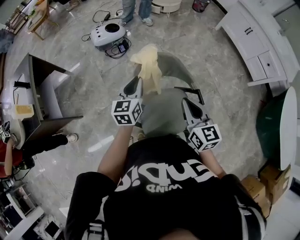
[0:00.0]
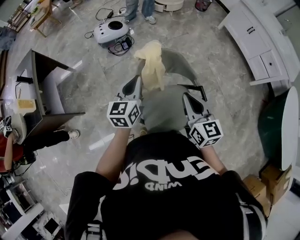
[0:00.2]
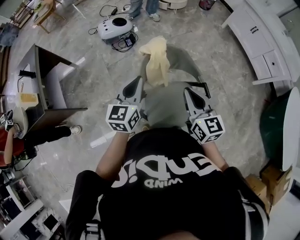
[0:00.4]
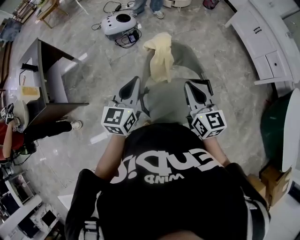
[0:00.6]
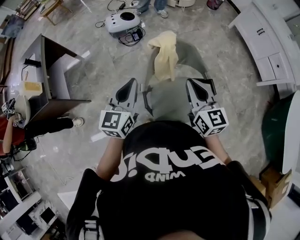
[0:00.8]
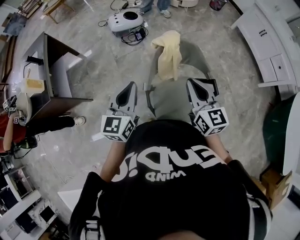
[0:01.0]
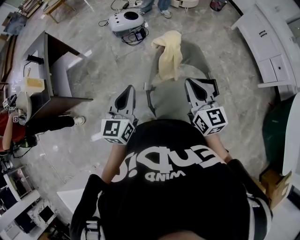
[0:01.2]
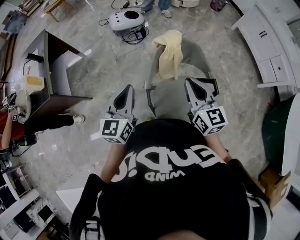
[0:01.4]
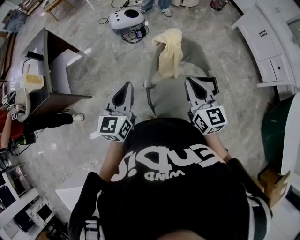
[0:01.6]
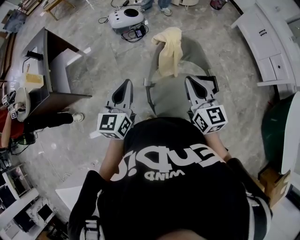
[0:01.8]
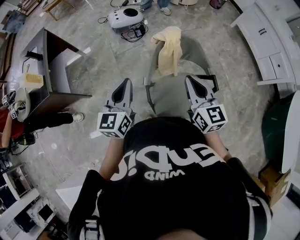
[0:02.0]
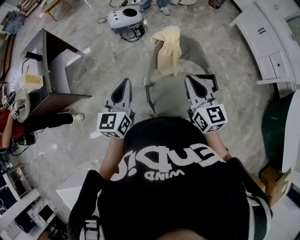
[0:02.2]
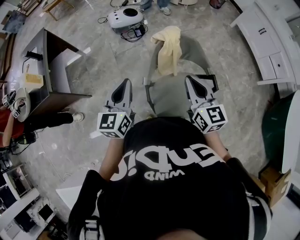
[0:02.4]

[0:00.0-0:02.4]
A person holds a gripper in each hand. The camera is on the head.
0:00.0 to 0:01.2: The left gripper goes approximately 20 cm backward, to the left and upward. The right gripper goes roughly 10 cm to the left.
0:01.2 to 0:02.4: There are only small adjustments of the grippers.

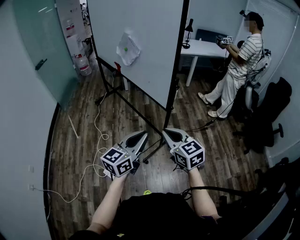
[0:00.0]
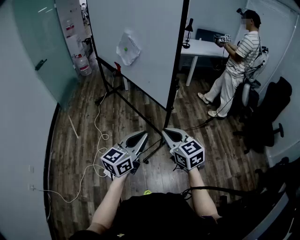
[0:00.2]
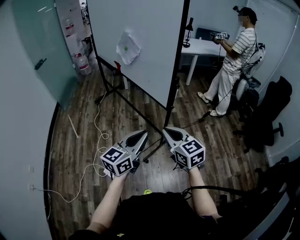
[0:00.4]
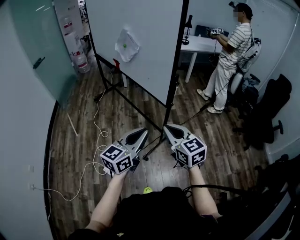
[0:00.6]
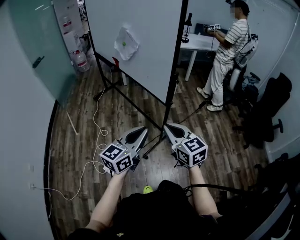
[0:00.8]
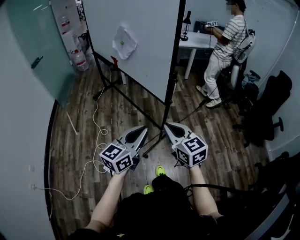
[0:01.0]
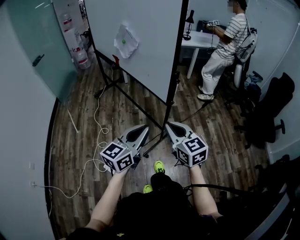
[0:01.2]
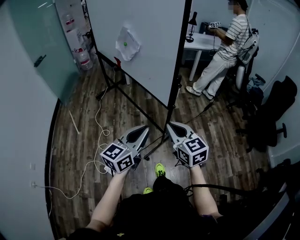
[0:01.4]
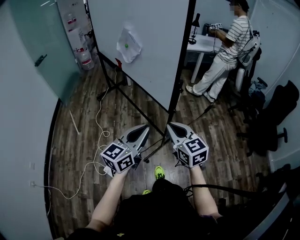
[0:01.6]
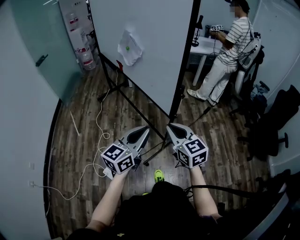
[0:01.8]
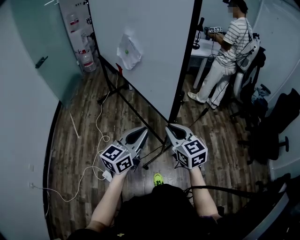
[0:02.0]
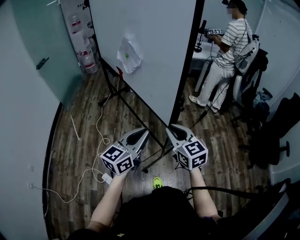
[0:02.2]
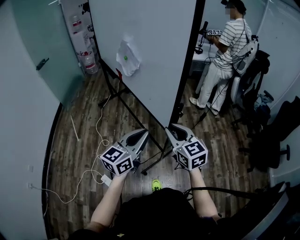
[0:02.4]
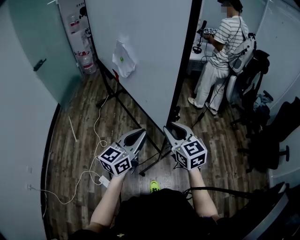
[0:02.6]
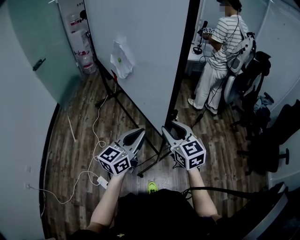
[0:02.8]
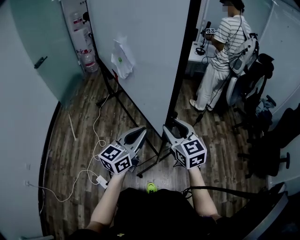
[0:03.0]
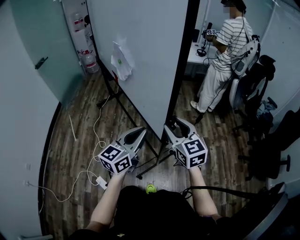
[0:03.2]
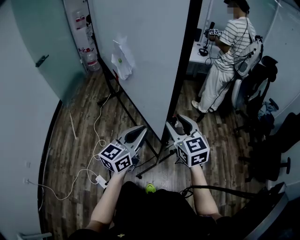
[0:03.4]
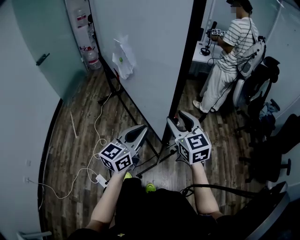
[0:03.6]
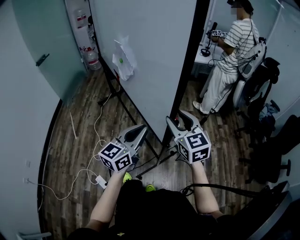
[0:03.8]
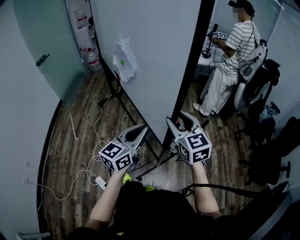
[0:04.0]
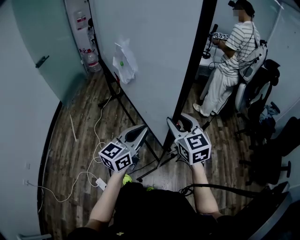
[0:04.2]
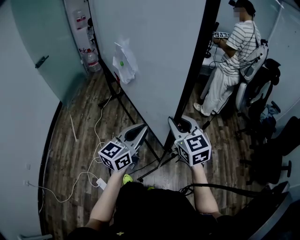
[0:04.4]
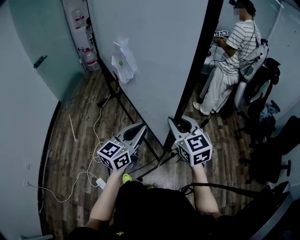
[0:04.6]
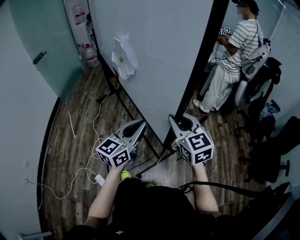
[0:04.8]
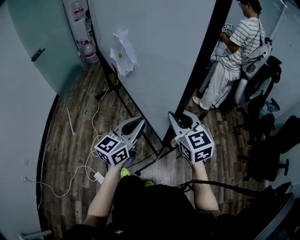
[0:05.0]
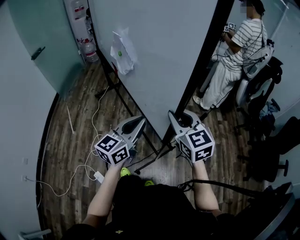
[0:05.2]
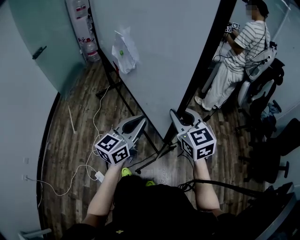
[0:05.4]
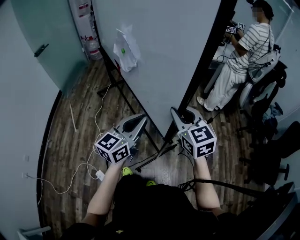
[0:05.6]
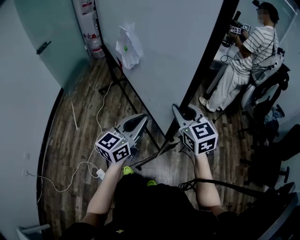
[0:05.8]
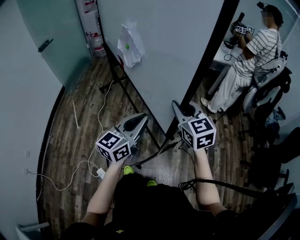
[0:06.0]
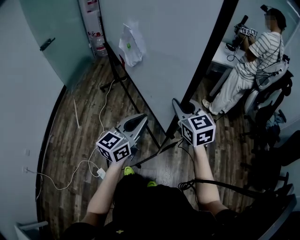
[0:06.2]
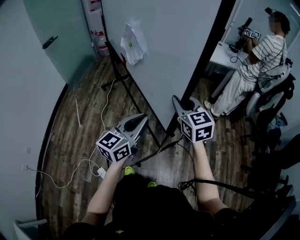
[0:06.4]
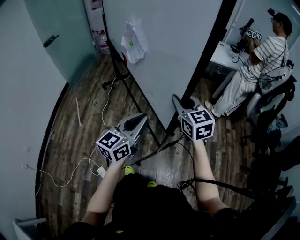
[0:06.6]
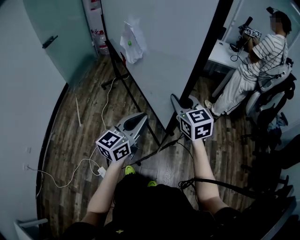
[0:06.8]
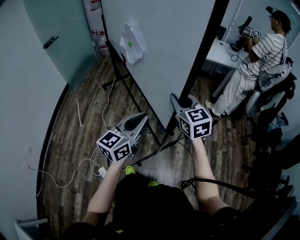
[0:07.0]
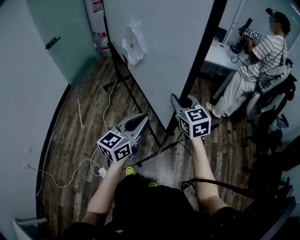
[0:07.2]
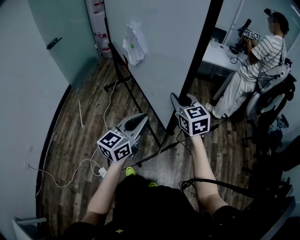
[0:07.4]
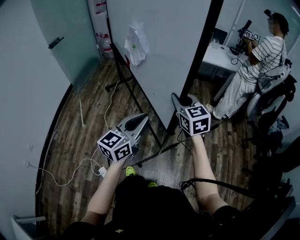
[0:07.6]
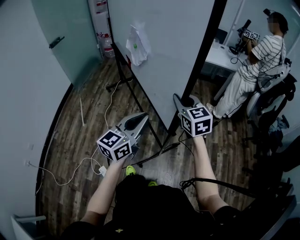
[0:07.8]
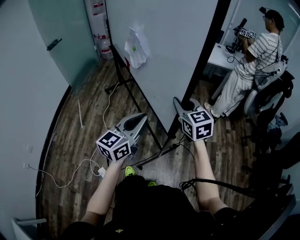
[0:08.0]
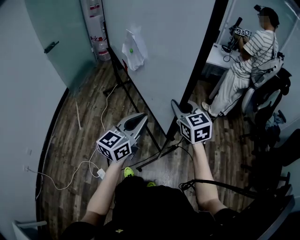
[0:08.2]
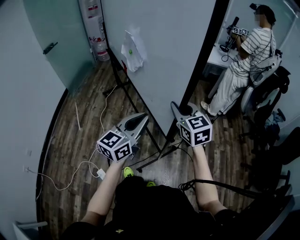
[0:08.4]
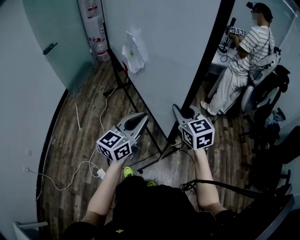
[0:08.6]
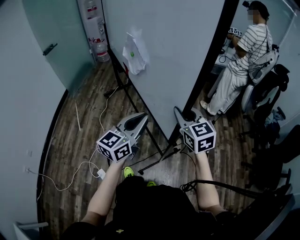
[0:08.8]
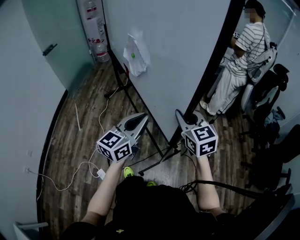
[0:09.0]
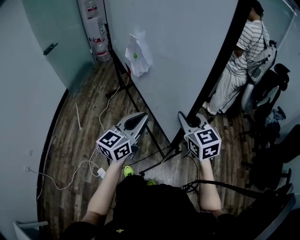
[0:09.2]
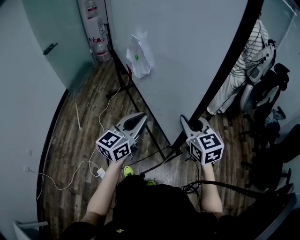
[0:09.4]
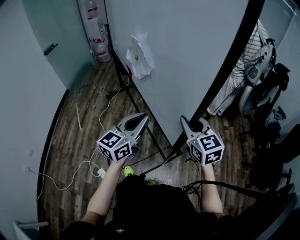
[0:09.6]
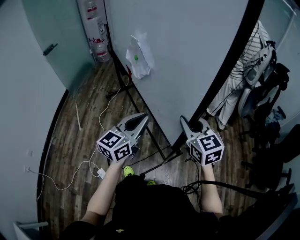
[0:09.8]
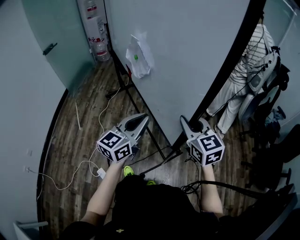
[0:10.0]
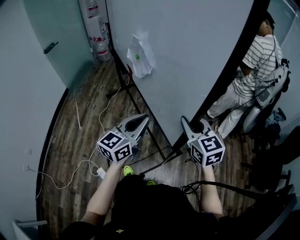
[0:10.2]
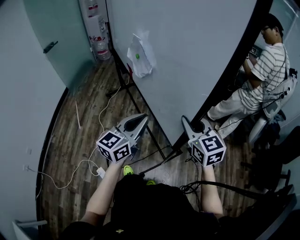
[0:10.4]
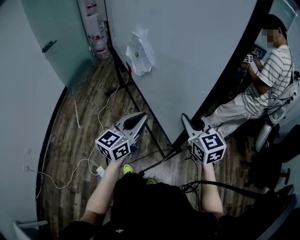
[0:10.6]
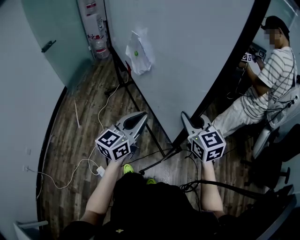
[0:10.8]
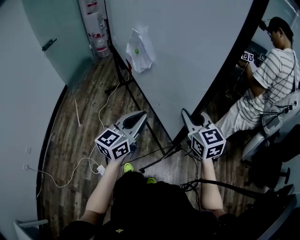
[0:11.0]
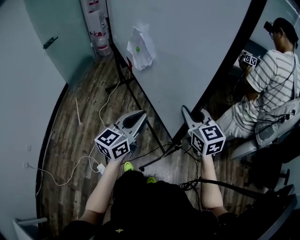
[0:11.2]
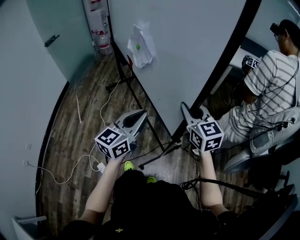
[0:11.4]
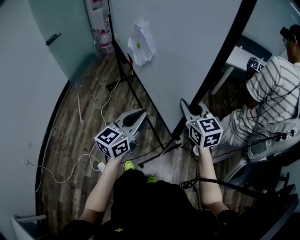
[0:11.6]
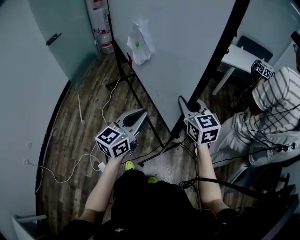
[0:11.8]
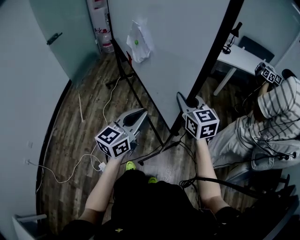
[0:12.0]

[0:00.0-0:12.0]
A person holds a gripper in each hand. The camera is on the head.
0:00.0 to 0:01.6: Both grippers travel together forward, some 5 cm.
0:01.6 to 0:03.0: Both grippers move forward, roughly 15 cm. The right gripper opens up.
0:03.0 to 0:04.4: The two grippers go some 5 cm forward.
0:04.4 to 0:06.0: The right gripper moves forward and to the left, about 10 cm, while the left gripper heads to the left, covering roughly 5 cm.
0:06.0 to 0:07.6: There are only small adjustments of the grippers.
0:07.6 to 0:09.0: The left gripper shifts by roughly 5 cm. The right gripper heads backward and to the right, covering some 15 cm.
0:09.0 to 0:10.4: The grippers move only a little.
0:10.4 to 0:12.0: The left gripper goes roughly 5 cm to the left. Meanwhile the right gripper moves forward and to the left, about 15 cm.

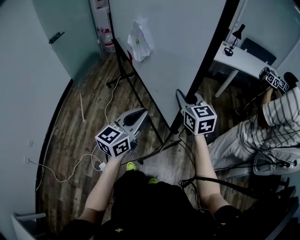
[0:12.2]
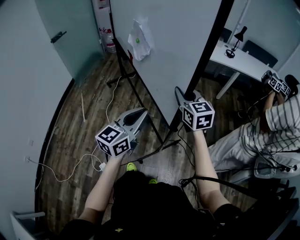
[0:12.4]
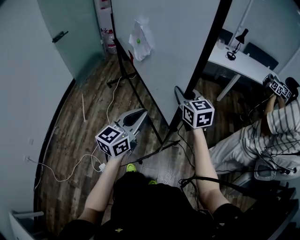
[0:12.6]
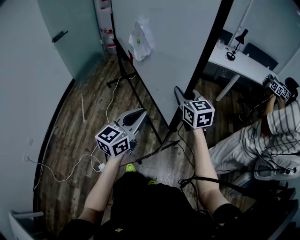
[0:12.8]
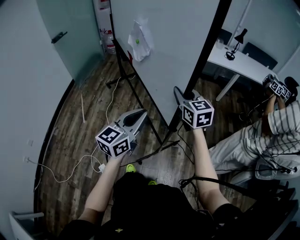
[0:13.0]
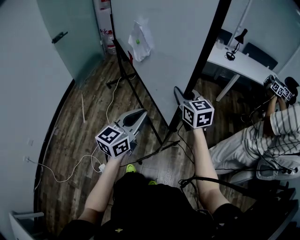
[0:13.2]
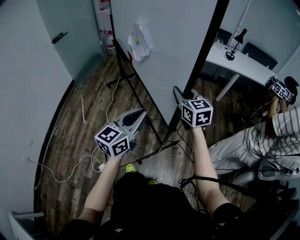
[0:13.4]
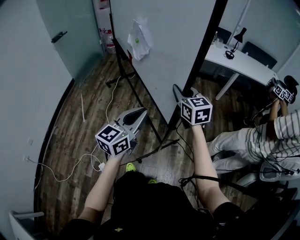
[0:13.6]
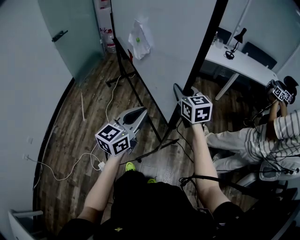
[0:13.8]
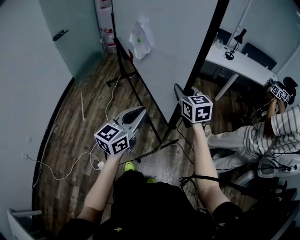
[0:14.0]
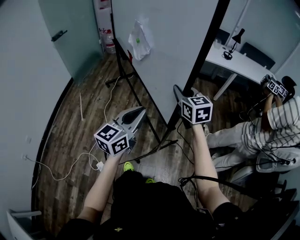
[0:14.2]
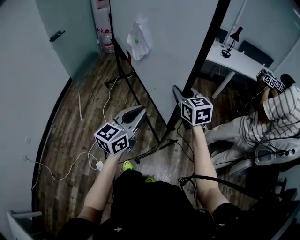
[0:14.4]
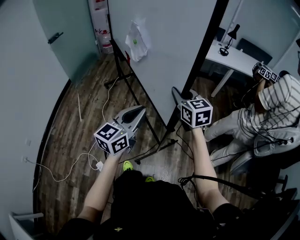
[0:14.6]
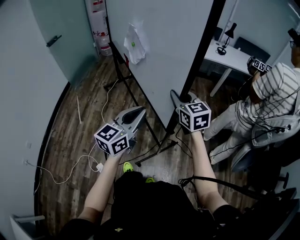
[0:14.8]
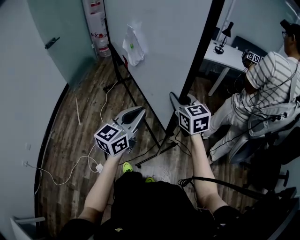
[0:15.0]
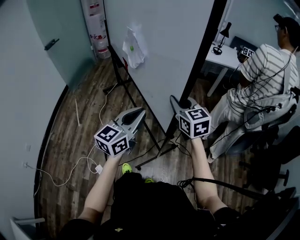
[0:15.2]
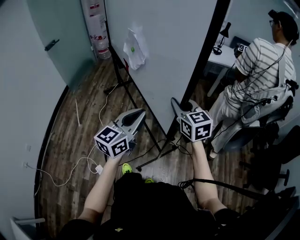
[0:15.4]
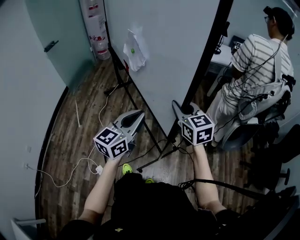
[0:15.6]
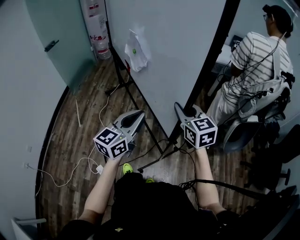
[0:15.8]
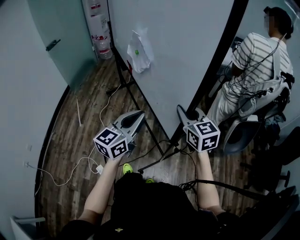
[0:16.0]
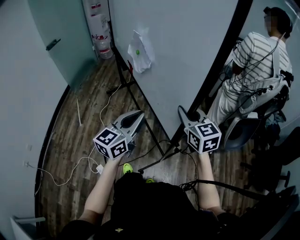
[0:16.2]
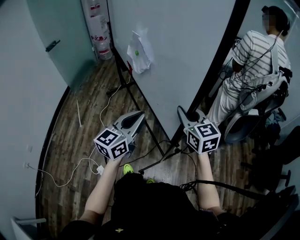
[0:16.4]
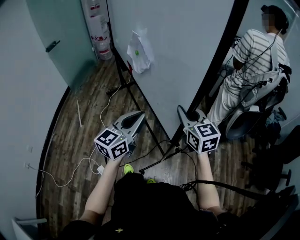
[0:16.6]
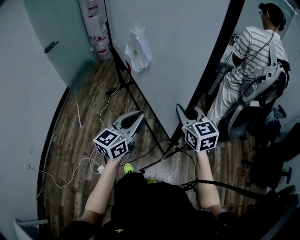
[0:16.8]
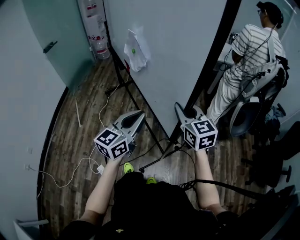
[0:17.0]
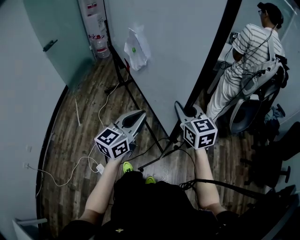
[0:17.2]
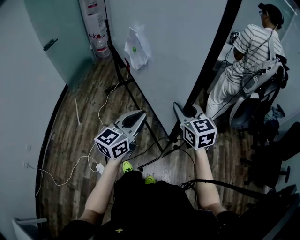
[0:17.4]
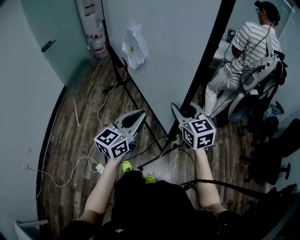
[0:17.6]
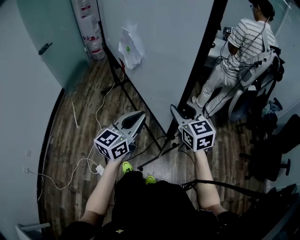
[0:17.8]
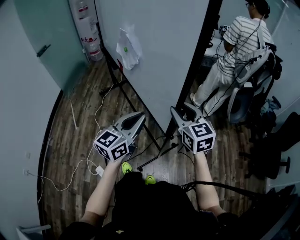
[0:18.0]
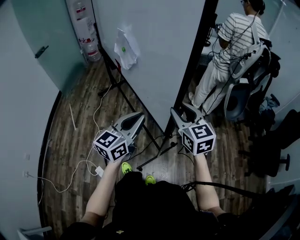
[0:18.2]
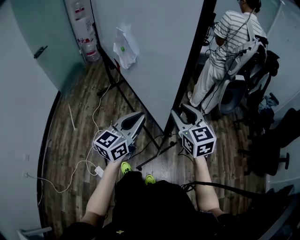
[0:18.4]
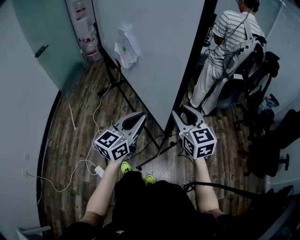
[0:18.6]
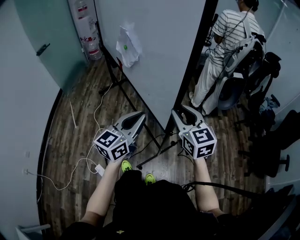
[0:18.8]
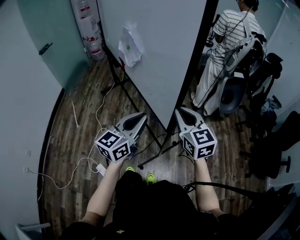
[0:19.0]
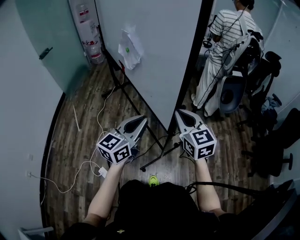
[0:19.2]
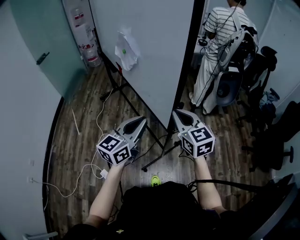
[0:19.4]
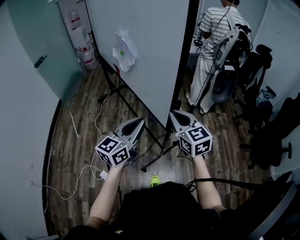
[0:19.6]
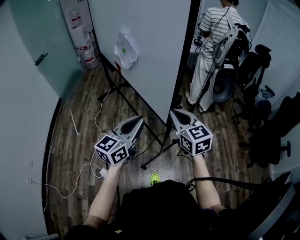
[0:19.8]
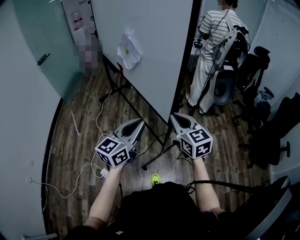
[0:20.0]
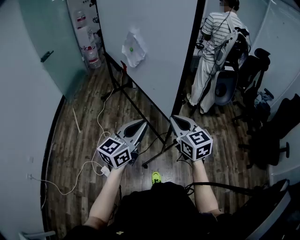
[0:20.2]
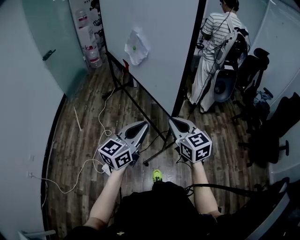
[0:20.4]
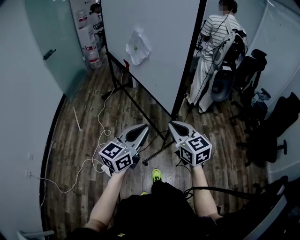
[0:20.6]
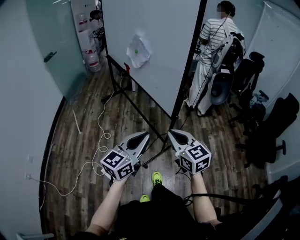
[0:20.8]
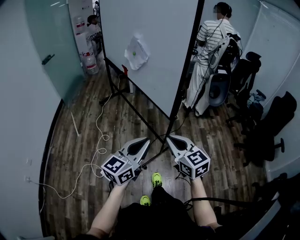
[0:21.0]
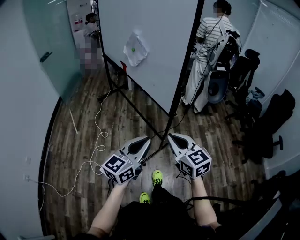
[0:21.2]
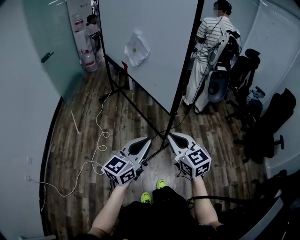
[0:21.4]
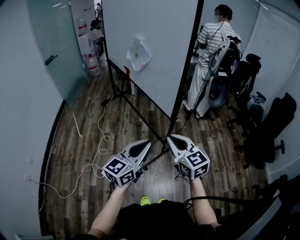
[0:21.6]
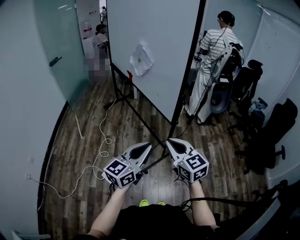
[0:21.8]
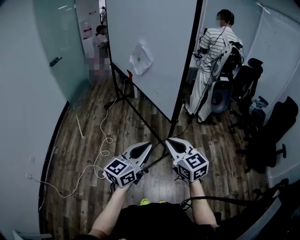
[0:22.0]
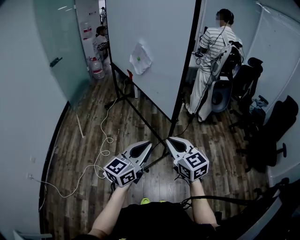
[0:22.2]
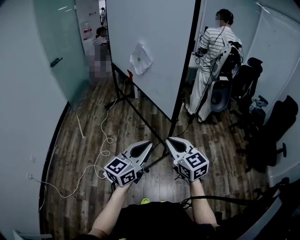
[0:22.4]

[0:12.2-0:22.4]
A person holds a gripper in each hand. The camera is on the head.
0:12.2 to 0:13.6: The grippers make only small movements.
0:13.6 to 0:15.2: The right gripper shifts some 10 cm backward and to the right, while the left gripper moves to the right, roughly 5 cm.
0:15.2 to 0:16.6: The right gripper moves roughly 5 cm.
0:16.6 to 0:18.0: There are only small adjustments of the grippers.
0:18.0 to 0:19.4: The right gripper goes about 5 cm backward, and closes its fingers.
0:19.4 to 0:21.0: Both grippers travel together backward, approximately 20 cm.
0:21.0 to 0:22.4: There are only small adjustments of the grippers.
